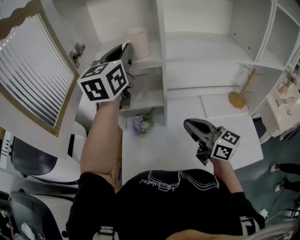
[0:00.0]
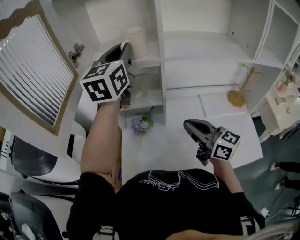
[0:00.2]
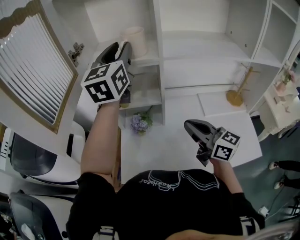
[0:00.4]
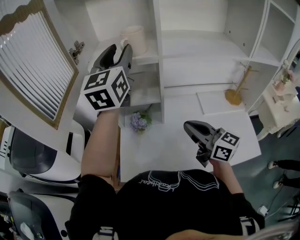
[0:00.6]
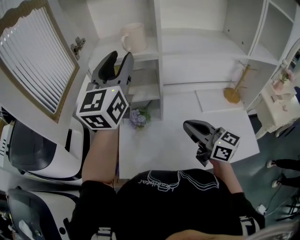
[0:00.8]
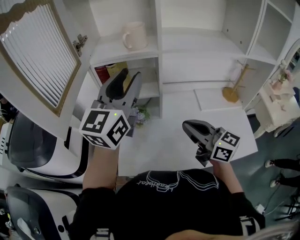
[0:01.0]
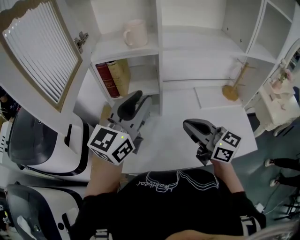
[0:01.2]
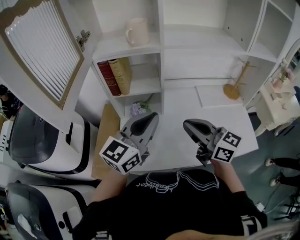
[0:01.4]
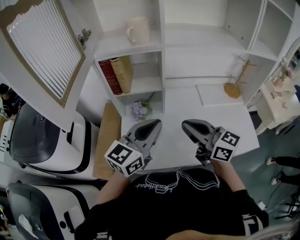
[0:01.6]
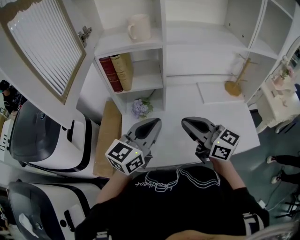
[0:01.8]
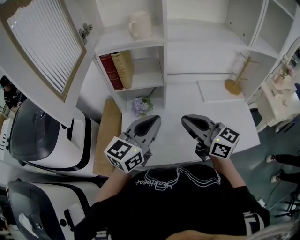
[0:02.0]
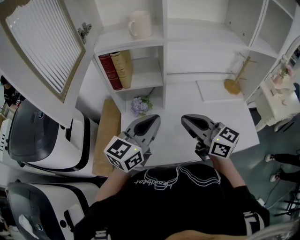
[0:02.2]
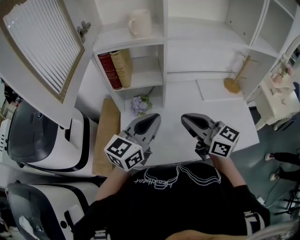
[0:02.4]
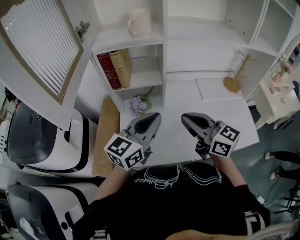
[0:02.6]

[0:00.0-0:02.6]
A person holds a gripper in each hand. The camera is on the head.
0:00.0 to 0:01.2: The right gripper moves backward, about 10 cm; the left gripper travels backward and downward by about 25 cm.
0:01.2 to 0:02.6: The left gripper goes approximately 10 cm downward, and closes.

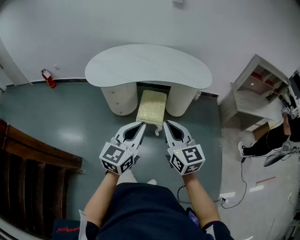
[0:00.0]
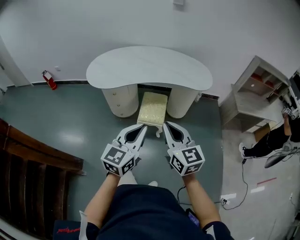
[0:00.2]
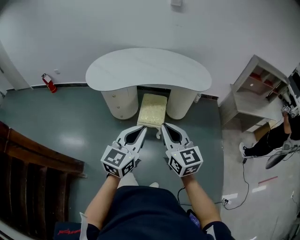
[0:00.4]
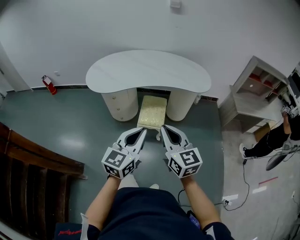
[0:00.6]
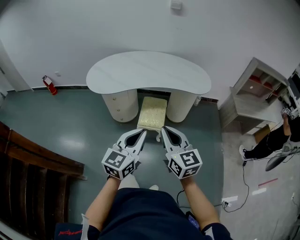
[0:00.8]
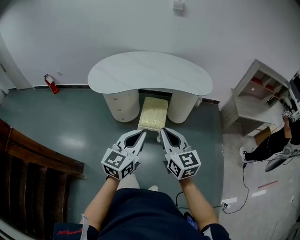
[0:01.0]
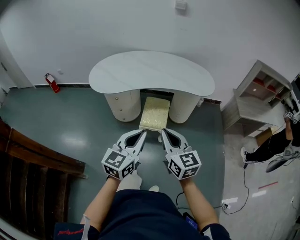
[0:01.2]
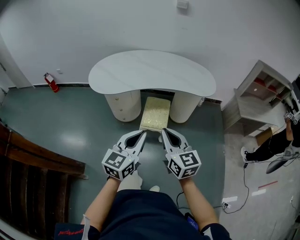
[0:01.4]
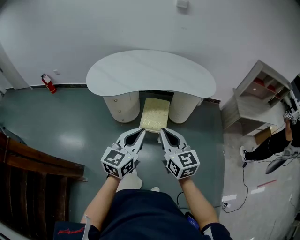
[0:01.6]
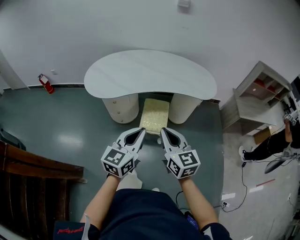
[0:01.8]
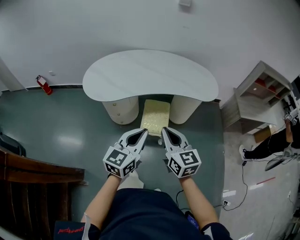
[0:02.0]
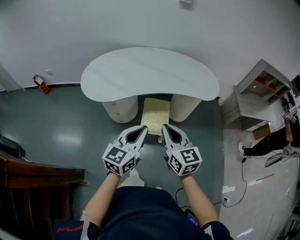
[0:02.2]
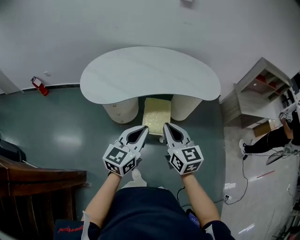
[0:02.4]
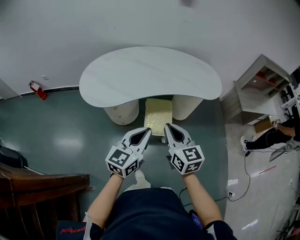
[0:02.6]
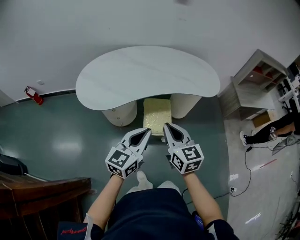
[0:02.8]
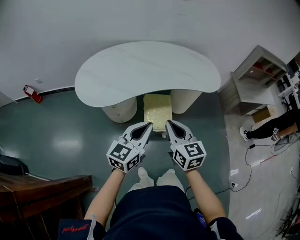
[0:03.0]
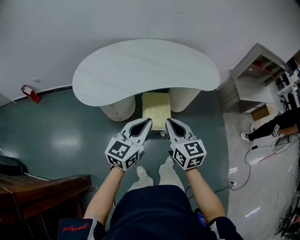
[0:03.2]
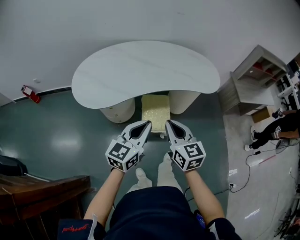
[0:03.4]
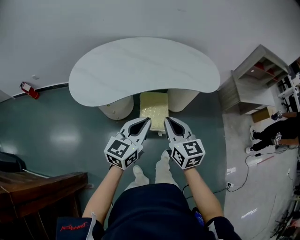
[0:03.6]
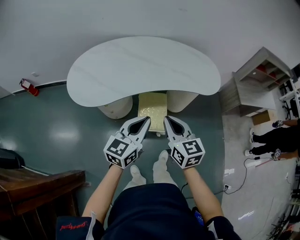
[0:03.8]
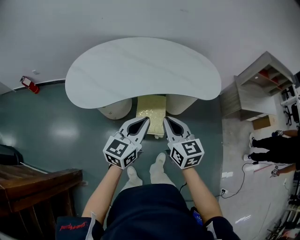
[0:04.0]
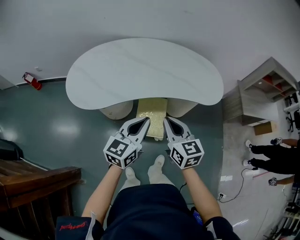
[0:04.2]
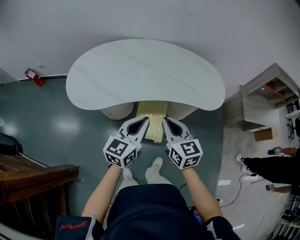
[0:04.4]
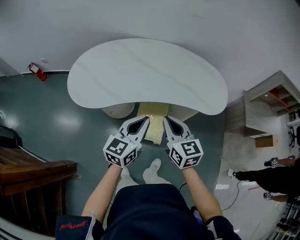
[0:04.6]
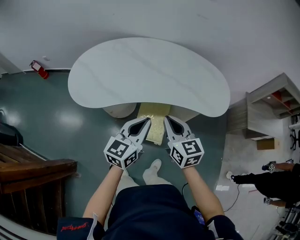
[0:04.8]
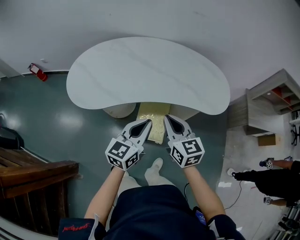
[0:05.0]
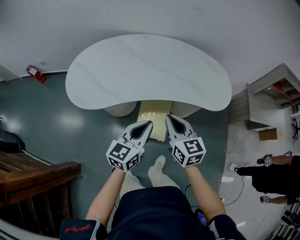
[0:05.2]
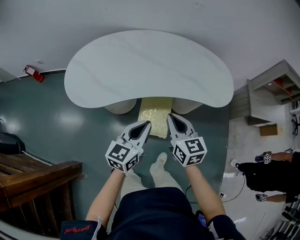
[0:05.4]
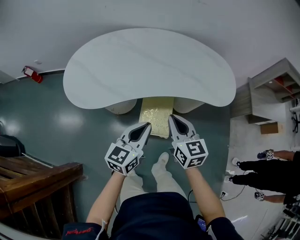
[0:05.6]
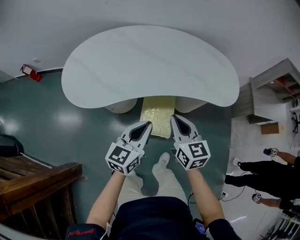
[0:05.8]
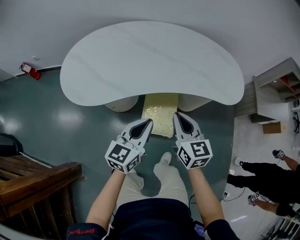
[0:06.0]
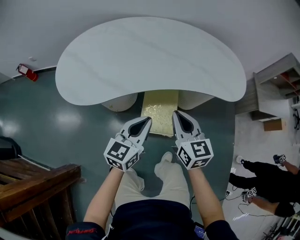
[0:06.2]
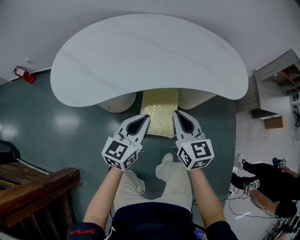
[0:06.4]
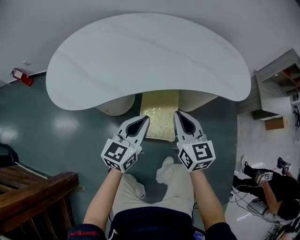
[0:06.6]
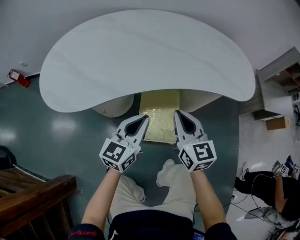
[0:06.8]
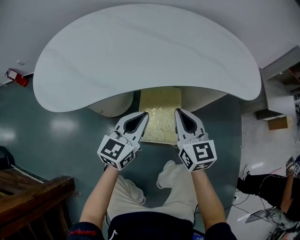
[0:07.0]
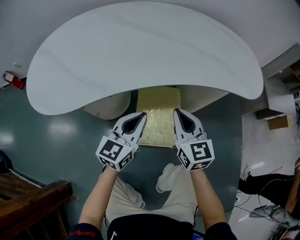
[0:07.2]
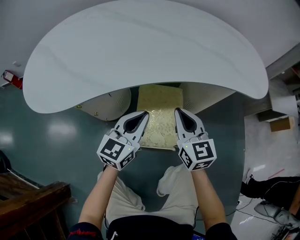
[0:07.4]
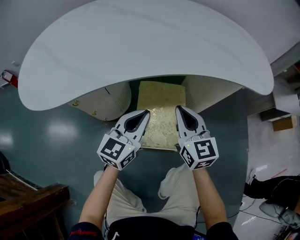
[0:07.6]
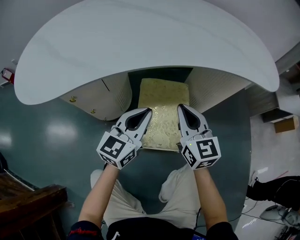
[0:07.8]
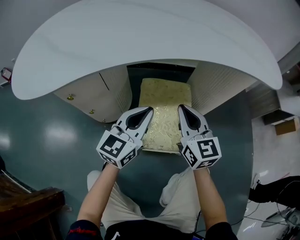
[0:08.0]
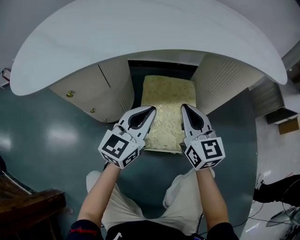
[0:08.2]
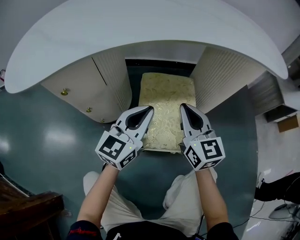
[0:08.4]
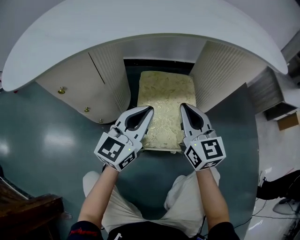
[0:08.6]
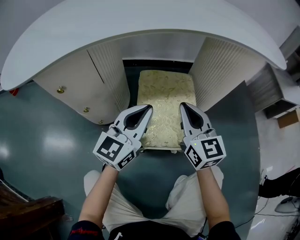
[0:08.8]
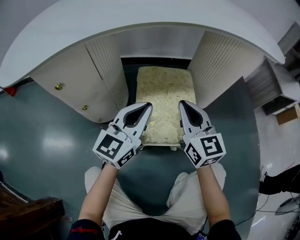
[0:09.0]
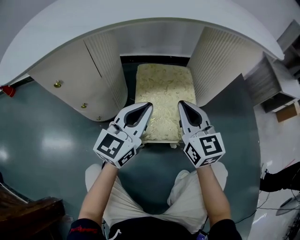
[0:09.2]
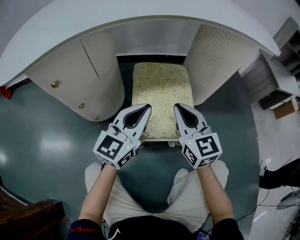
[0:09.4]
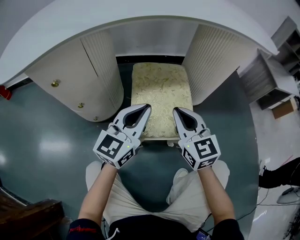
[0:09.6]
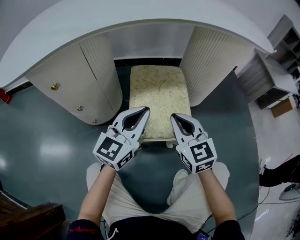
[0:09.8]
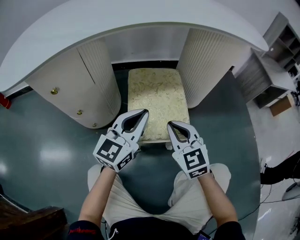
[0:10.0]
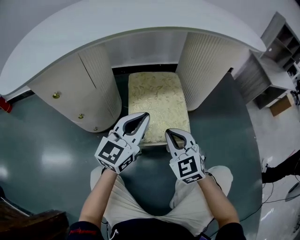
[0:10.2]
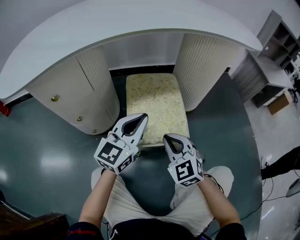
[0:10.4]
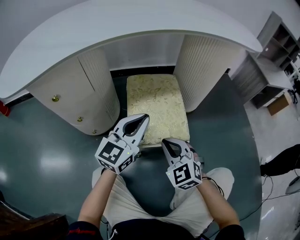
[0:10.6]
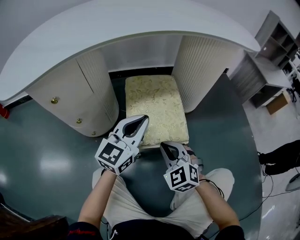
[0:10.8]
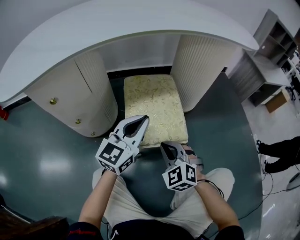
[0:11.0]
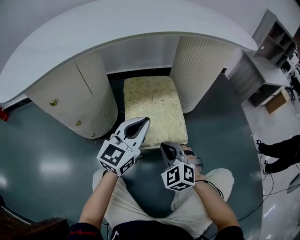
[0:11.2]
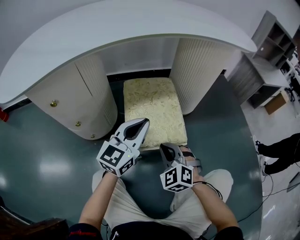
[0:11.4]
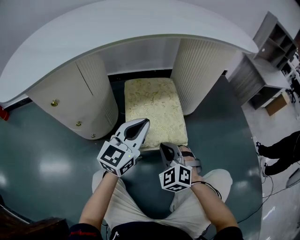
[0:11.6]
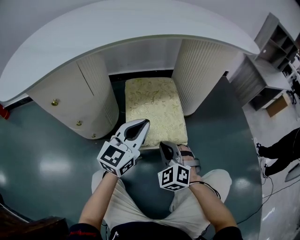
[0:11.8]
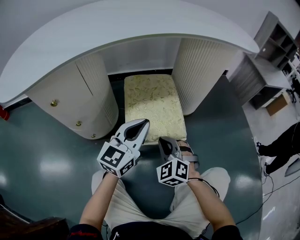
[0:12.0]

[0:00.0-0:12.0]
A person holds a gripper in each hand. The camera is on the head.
0:00.0 to 0:01.6: The left gripper moves forward, some 5 cm. Meanwhile the right gripper changes place by some 5 cm.
0:01.6 to 0:03.0: Both grippers travel together forward and to the left, some 15 cm.
0:03.0 to 0:04.4: Both grippers travel together forward and to the right, roughly 15 cm.
0:04.4 to 0:06.0: The grippers both shift downward by roughly 10 cm.
0:06.0 to 0:07.6: The two grippers go approximately 25 cm downward.
0:07.6 to 0:09.0: Both grippers move downward, approximately 10 cm.
0:09.0 to 0:10.4: The right gripper travels backward and downward by approximately 15 cm, and rotates approximately 40 degrees.
0:10.4 to 0:12.0: The right gripper is displaced downward by roughly 5 cm.

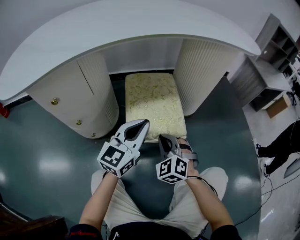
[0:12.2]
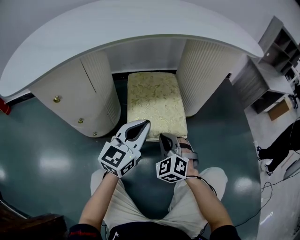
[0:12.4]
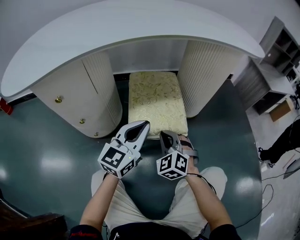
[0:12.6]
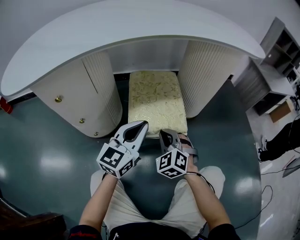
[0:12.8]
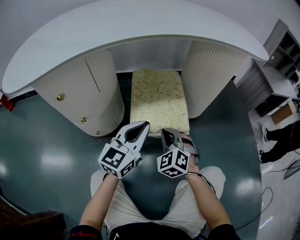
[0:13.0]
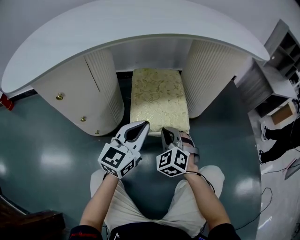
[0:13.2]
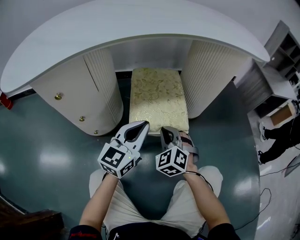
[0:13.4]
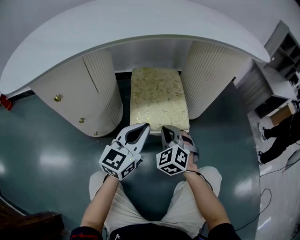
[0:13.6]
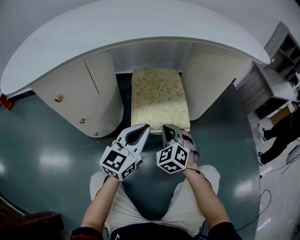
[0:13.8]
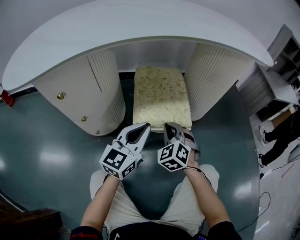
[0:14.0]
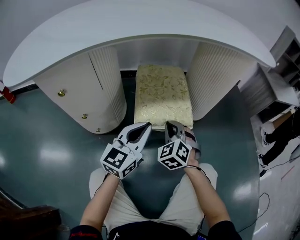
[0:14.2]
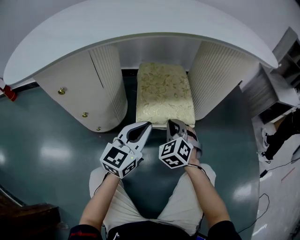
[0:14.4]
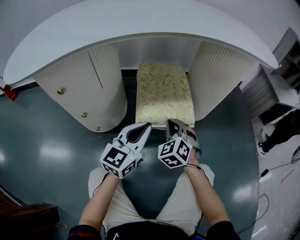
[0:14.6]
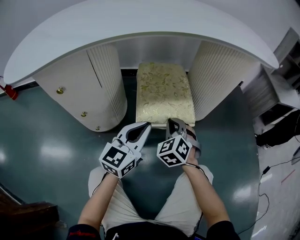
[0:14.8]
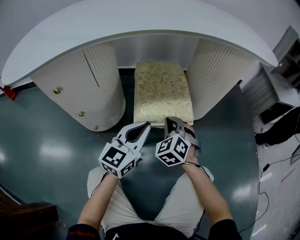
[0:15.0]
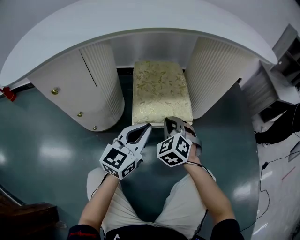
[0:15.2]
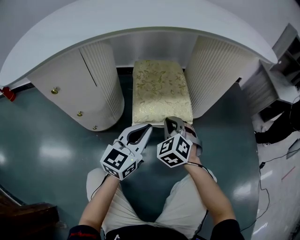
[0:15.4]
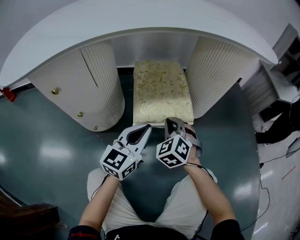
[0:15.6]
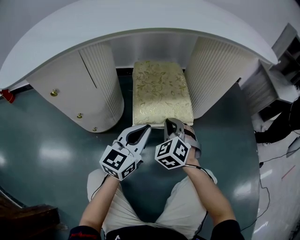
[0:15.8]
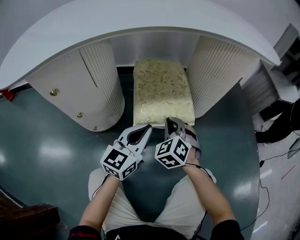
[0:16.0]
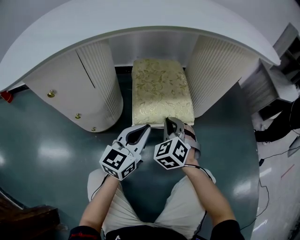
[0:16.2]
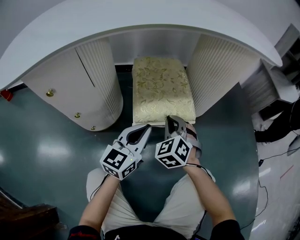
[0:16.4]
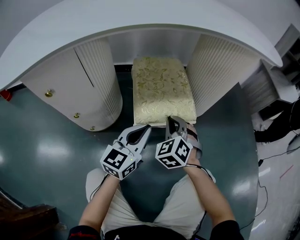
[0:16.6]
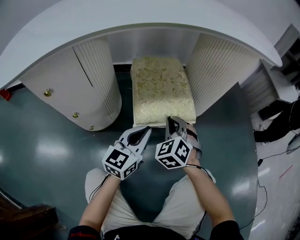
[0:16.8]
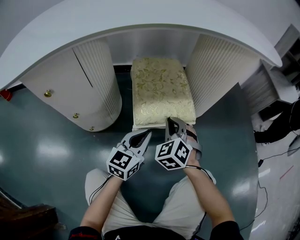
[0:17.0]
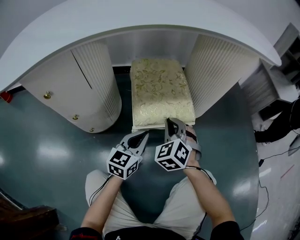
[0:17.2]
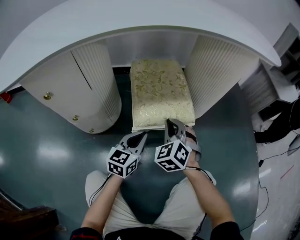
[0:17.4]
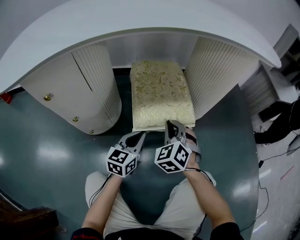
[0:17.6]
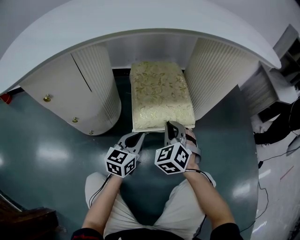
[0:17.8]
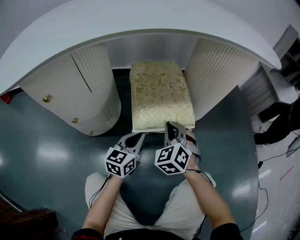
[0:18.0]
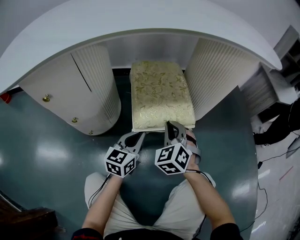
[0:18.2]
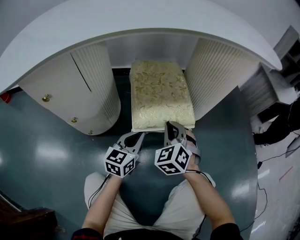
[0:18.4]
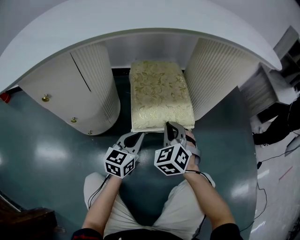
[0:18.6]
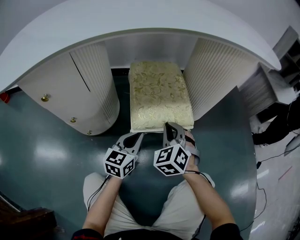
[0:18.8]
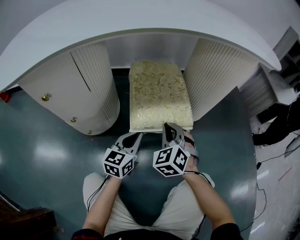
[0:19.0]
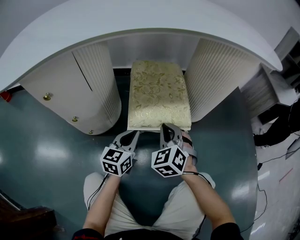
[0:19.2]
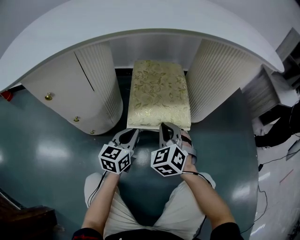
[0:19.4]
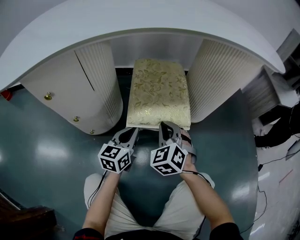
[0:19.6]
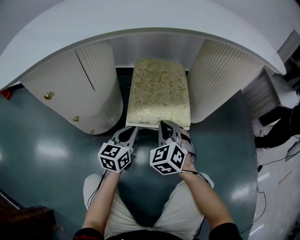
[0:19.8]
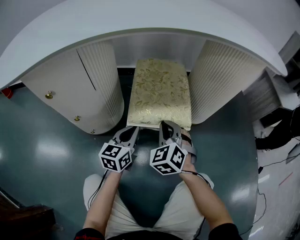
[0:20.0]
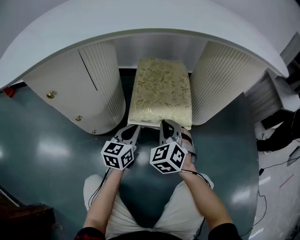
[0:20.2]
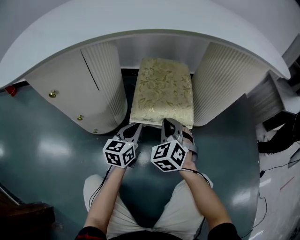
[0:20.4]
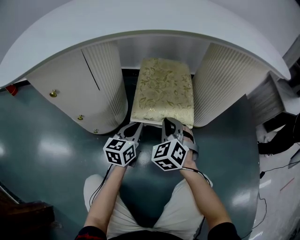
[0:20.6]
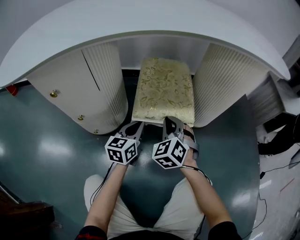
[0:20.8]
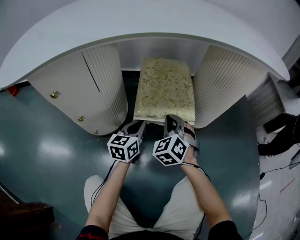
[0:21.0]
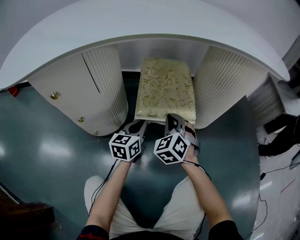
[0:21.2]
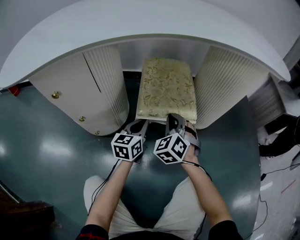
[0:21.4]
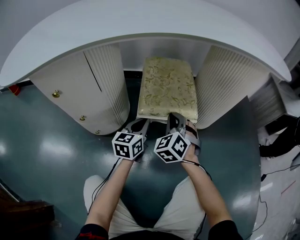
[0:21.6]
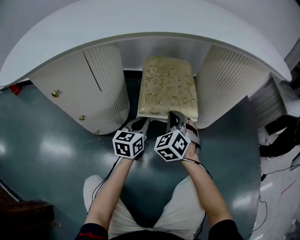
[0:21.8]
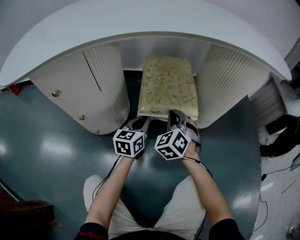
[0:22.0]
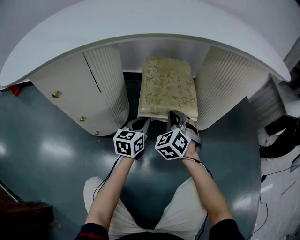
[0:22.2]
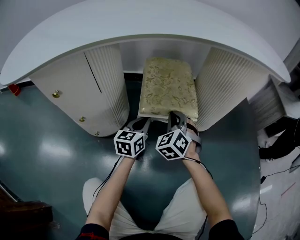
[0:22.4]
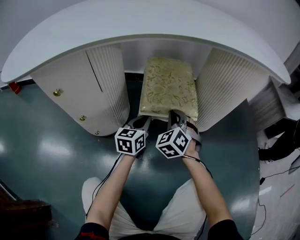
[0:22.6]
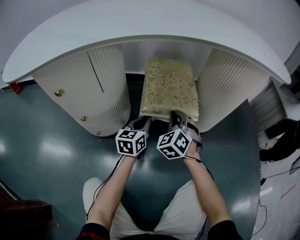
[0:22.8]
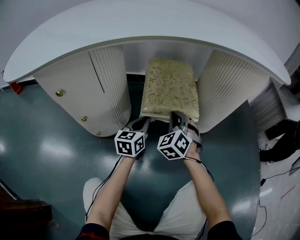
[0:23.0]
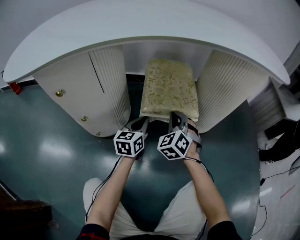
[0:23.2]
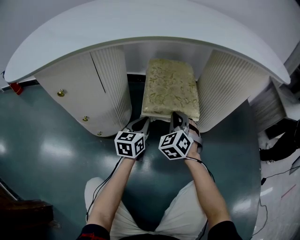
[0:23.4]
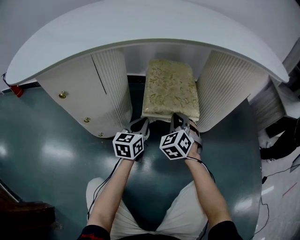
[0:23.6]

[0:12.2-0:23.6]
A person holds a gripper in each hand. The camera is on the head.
0:12.2 to 0:13.6: The right gripper heads forward, covering some 5 cm.
0:13.6 to 0:16.4: There are only small adjustments of the grippers.
0:16.4 to 0:17.8: The left gripper heads downward, covering some 10 cm.
0:17.8 to 0:20.8: There are only small adjustments of the grippers.
0:20.8 to 0:23.6: There are only small adjustments of the grippers.
